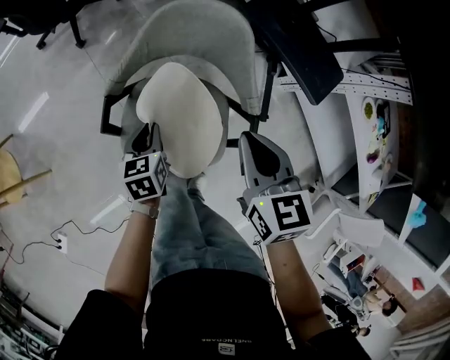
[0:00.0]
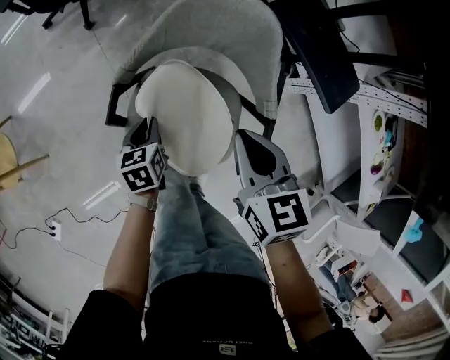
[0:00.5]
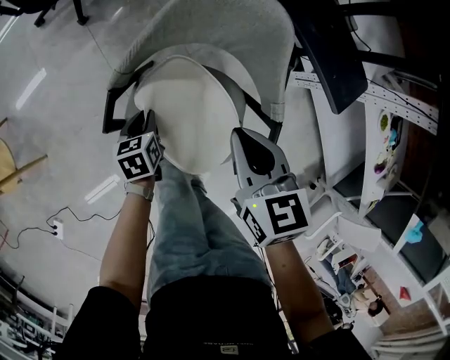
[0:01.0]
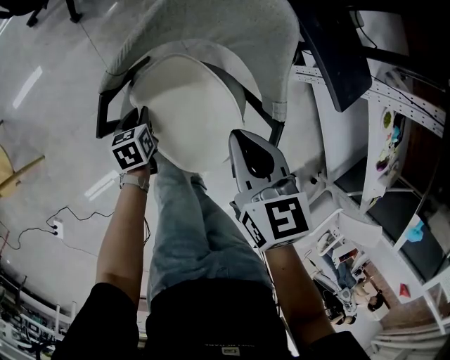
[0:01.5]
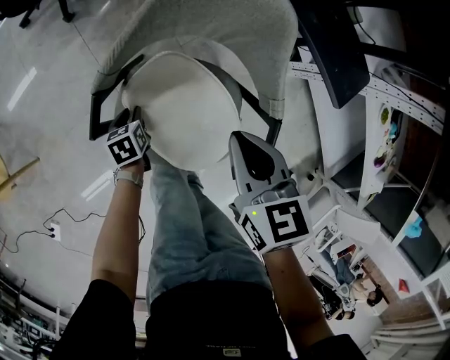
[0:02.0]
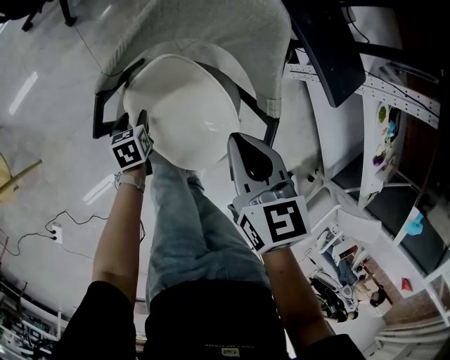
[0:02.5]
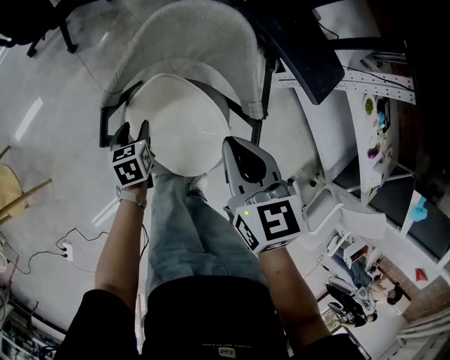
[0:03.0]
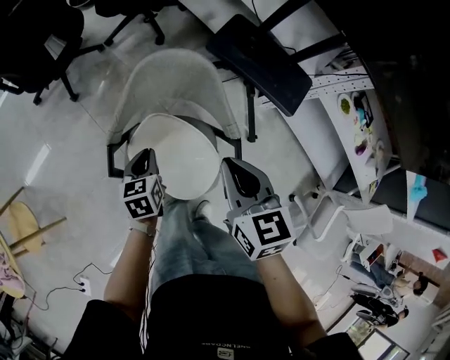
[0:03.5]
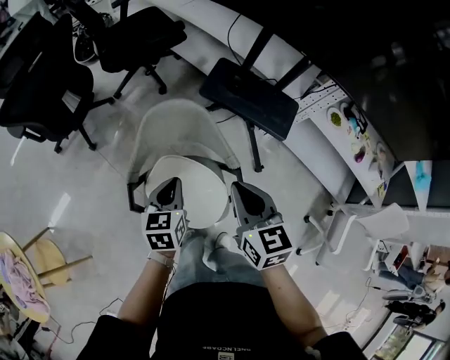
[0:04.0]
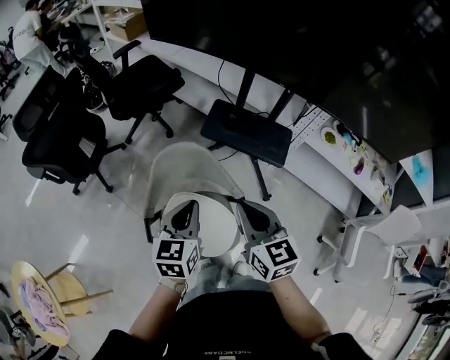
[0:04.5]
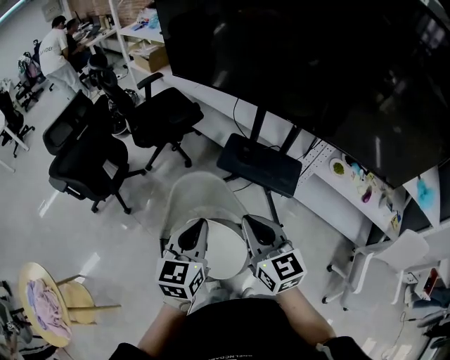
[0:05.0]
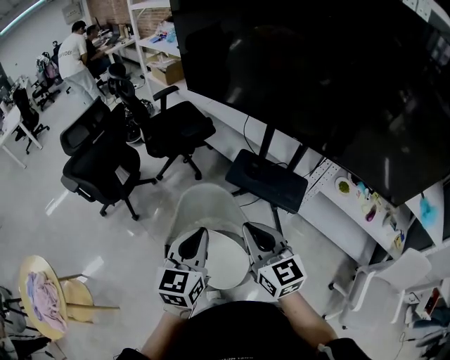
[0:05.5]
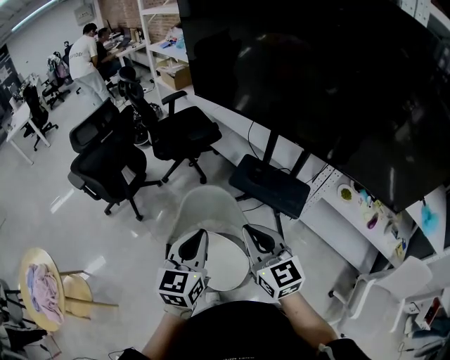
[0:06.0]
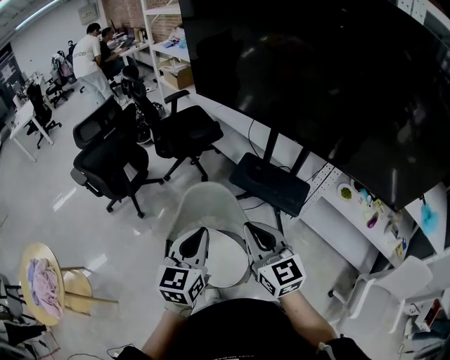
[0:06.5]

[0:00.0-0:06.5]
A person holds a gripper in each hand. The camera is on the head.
0:00.0 to 0:02.0: The right gripper travels downward by roughly 10 cm, while the left gripper shifts some 20 cm downward.
0:02.0 to 0:04.5: The right gripper moves upward, approximately 25 cm, and swivels some 30 degrees, while the left gripper shifts some 50 cm upward, tilts its fingers some 40 degrees upward, and closes.
0:04.5 to 0:06.5: The left gripper shifts some 15 cm upward and backward; the right gripper goes some 10 cm upward, and turns by roughly 20 degrees.

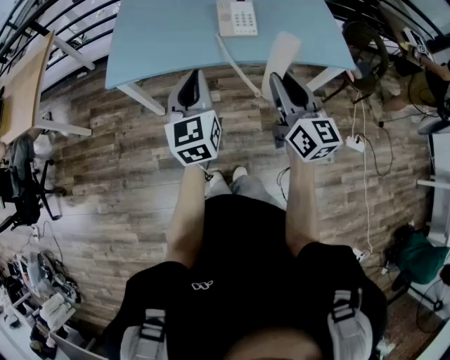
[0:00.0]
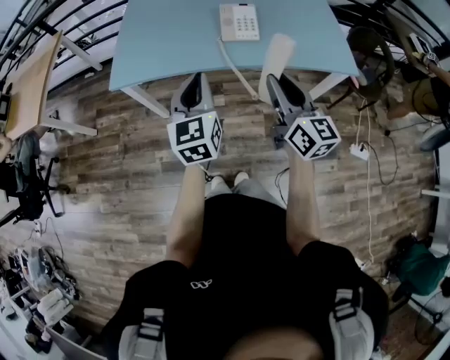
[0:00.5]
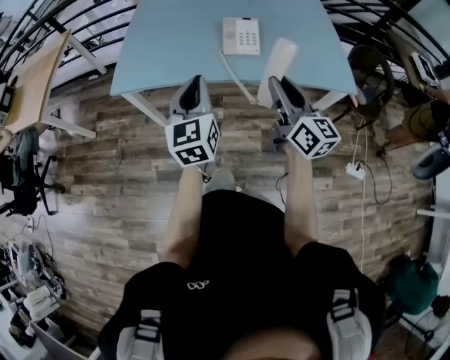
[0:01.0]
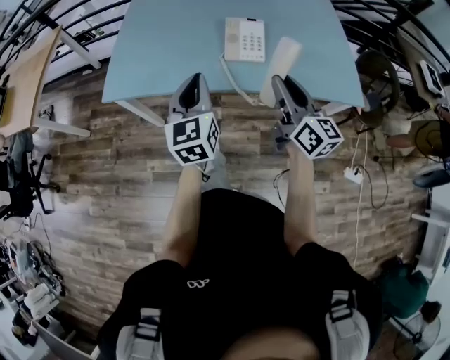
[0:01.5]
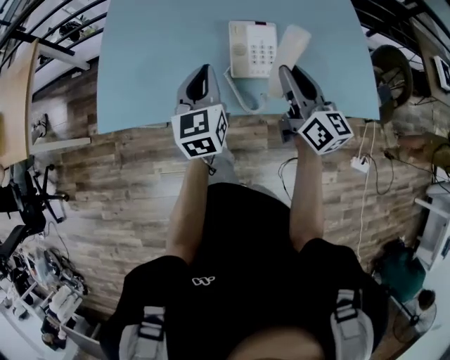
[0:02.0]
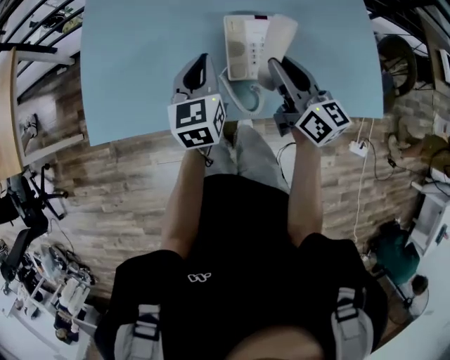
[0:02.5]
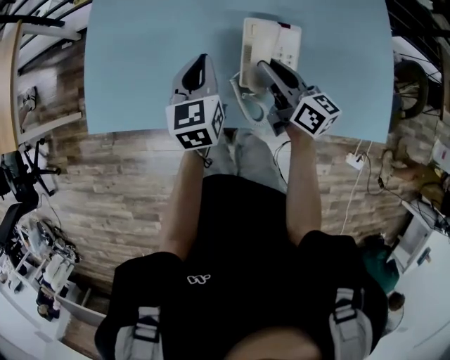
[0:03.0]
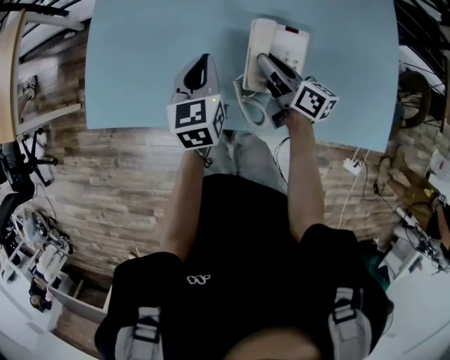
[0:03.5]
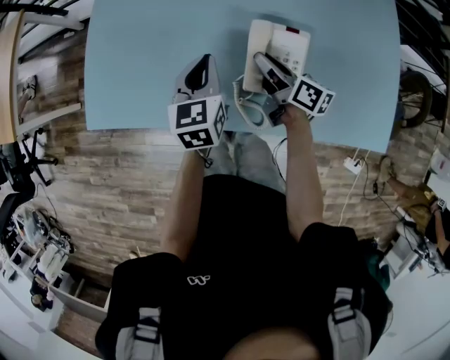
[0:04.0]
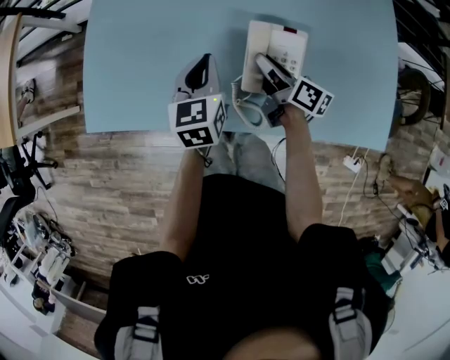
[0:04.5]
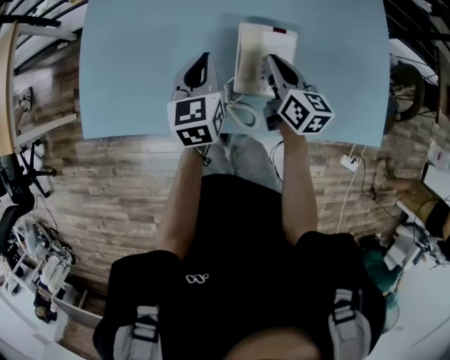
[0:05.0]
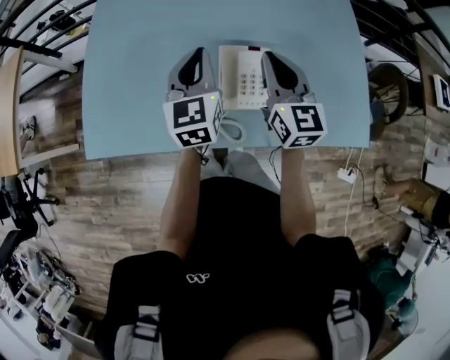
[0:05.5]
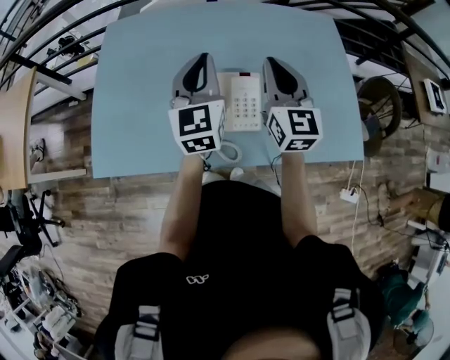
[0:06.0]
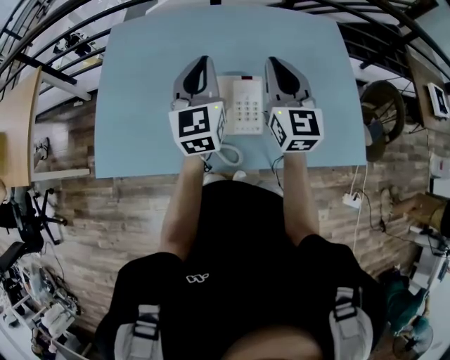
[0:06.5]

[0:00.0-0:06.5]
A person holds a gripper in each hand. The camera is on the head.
0:00.0 to 0:02.0: Both grippers move forward, roughly 30 cm.
0:02.0 to 0:04.5: The left gripper moves forward and downward, some 15 cm. Meanwhile the right gripper goes approximately 25 cm downward and forward, and changes its angle by about 40 degrees.
0:04.5 to 0:06.5: The left gripper heads upward and to the right, covering some 20 cm, and turns by some 30 degrees. The right gripper goes roughly 25 cm upward, twists approximately 60 degrees counterclockwise, seen from behind, and closes.

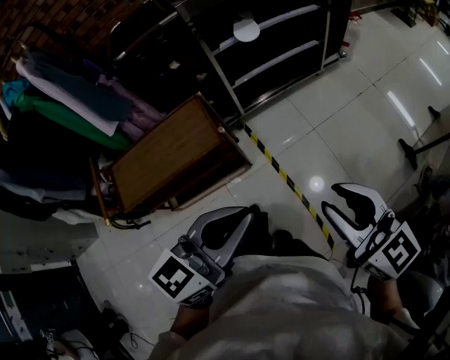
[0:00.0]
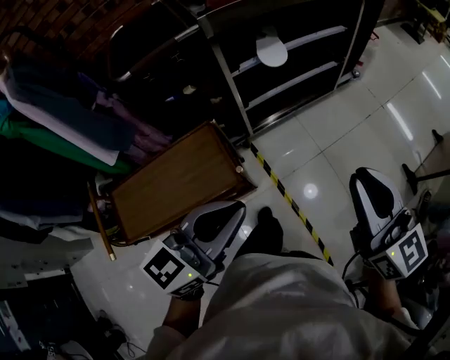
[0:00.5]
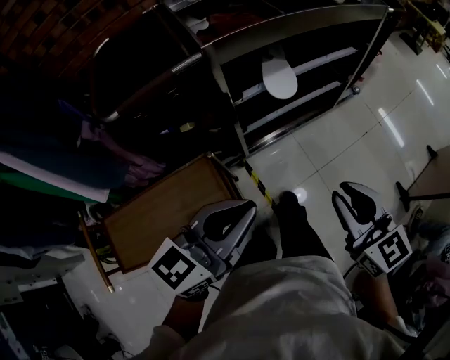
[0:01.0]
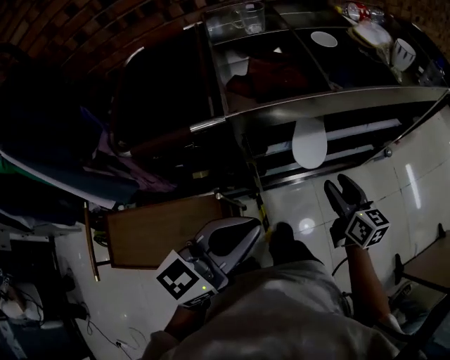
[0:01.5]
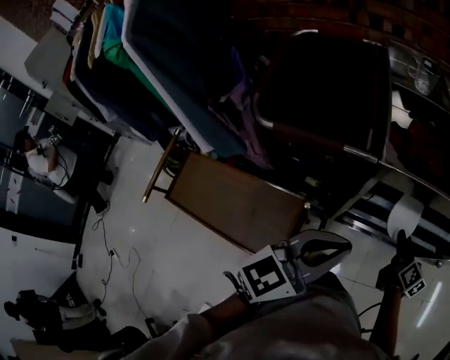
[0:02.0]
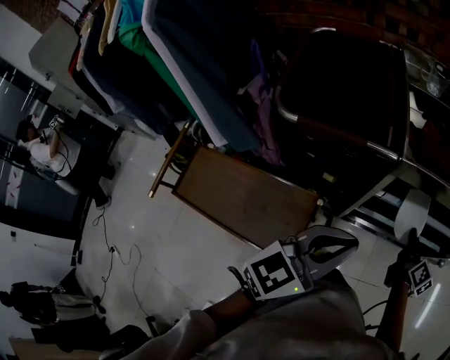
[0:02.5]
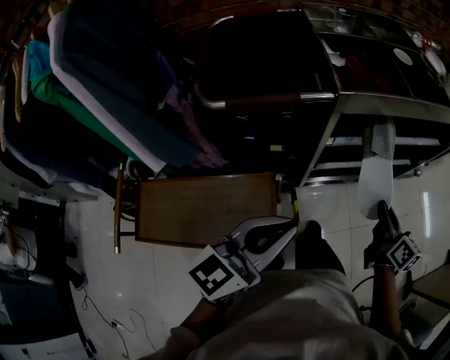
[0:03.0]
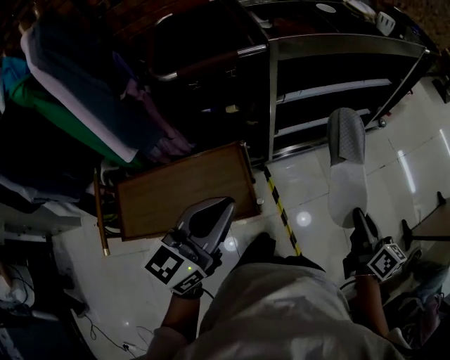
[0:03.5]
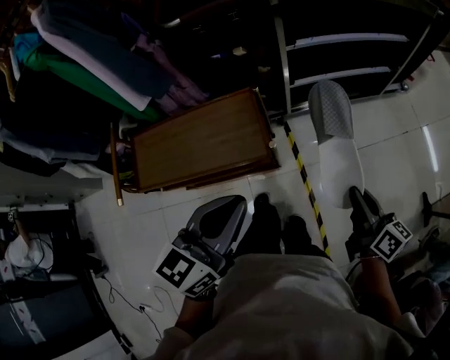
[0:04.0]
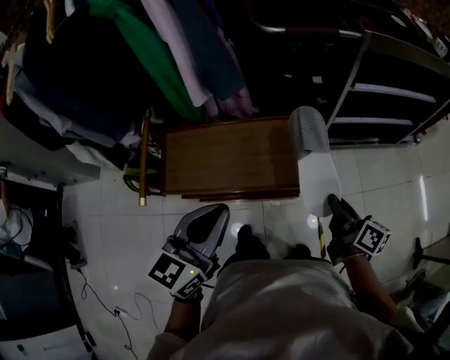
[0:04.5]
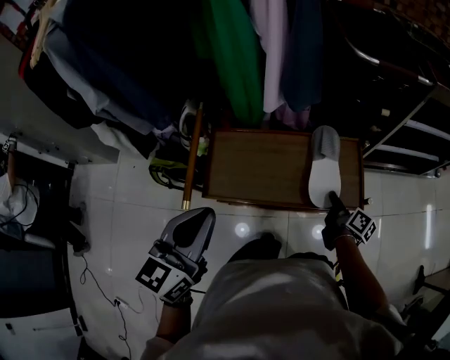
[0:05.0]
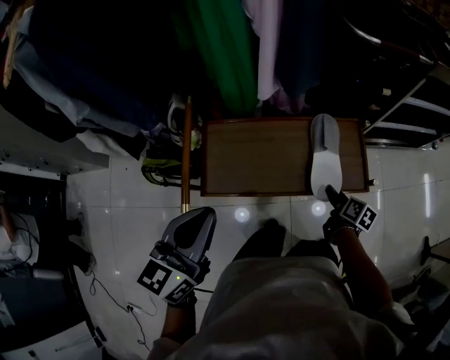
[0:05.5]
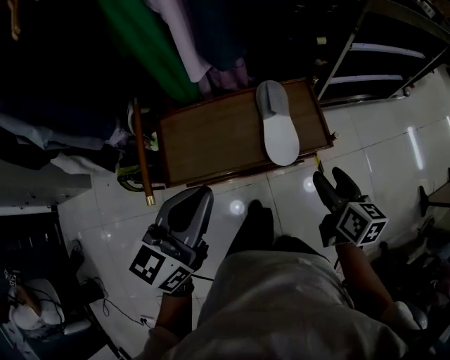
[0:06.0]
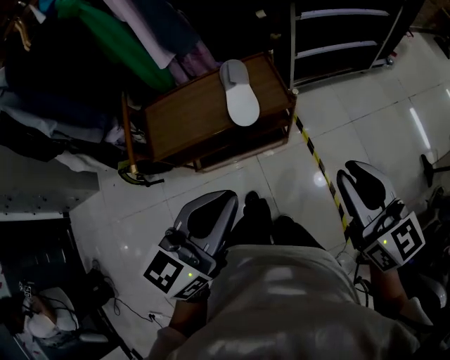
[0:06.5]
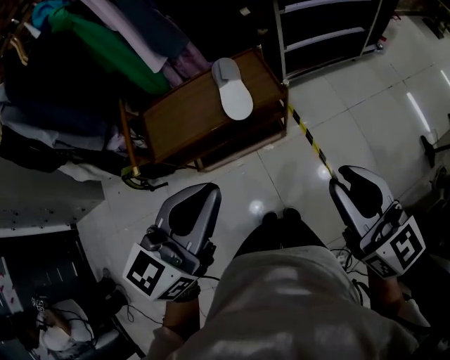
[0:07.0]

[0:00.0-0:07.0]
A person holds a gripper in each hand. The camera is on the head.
0:00.0 to 0:02.0: Both grippers are carried forward, some 60 cm. The left gripper swivels some 30 degrees; the right gripper changes its angle by about 40 degrees, and opens its fingers.
0:02.0 to 0:03.5: The right gripper is displaced backward by approximately 40 cm, and closes. The left gripper travels backward and to the left by about 25 cm.
0:03.5 to 0:05.0: The two grippers travel together, to the left, some 40 cm. The right gripper heads downward, covering some 20 cm, and changes its angle by roughly 30 degrees; the left gripper changes its angle by roughly 30 degrees.
0:05.0 to 0:07.0: The right gripper is displaced backward, upward and to the right by about 50 cm, twists some 50 degrees counterclockwise, seen from behind, and opens, then closes again. The left gripper moves to the right and backward, roughly 30 cm, and rotates some 30 degrees.

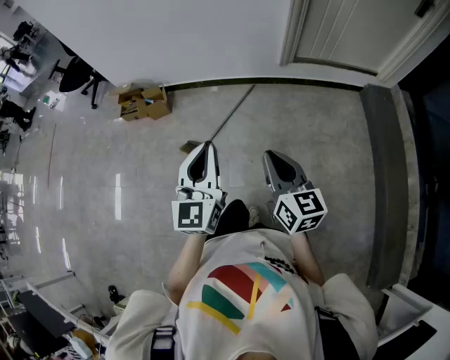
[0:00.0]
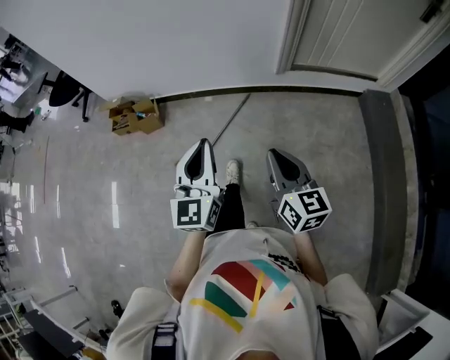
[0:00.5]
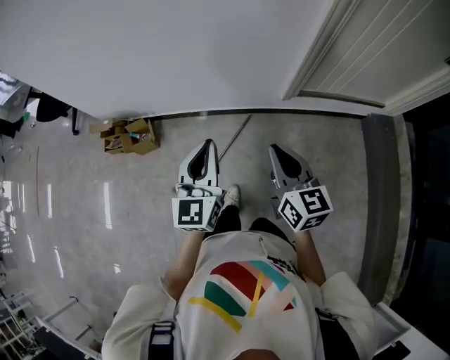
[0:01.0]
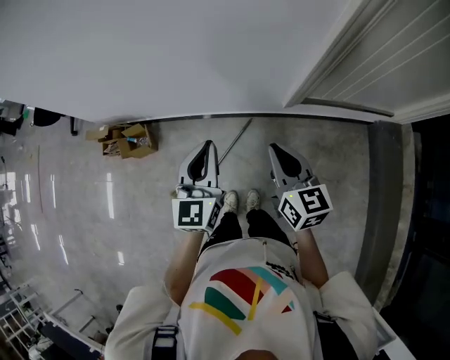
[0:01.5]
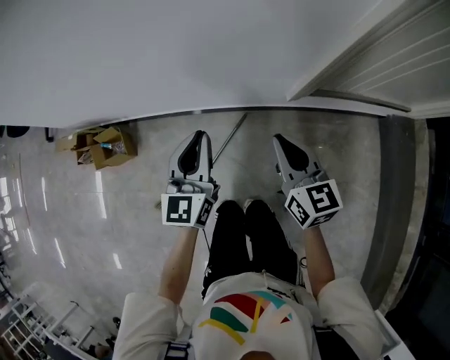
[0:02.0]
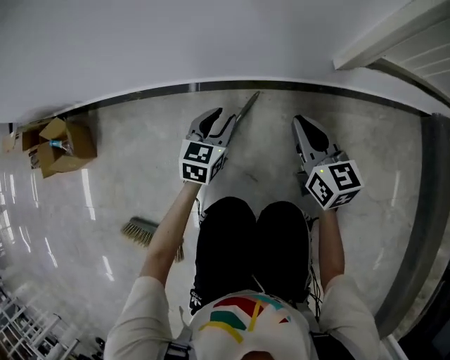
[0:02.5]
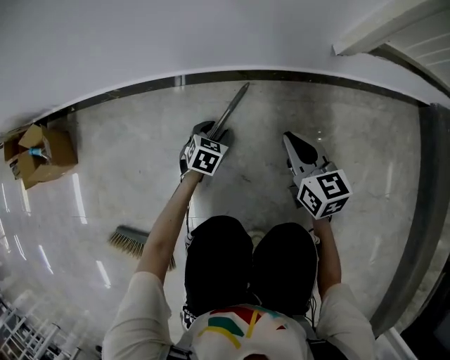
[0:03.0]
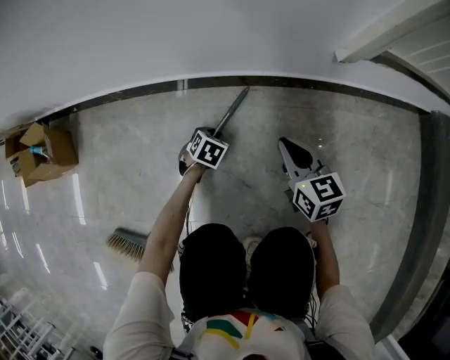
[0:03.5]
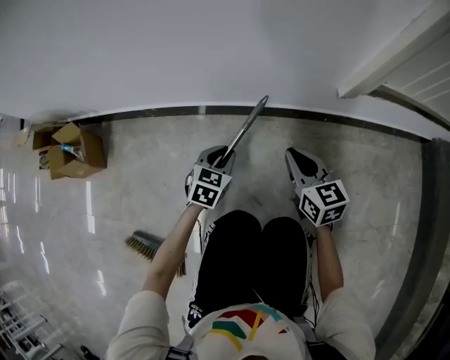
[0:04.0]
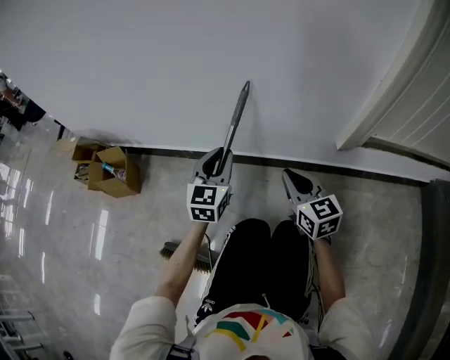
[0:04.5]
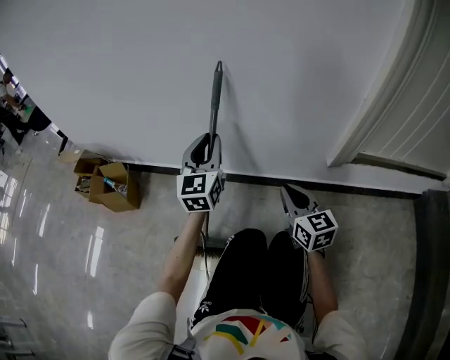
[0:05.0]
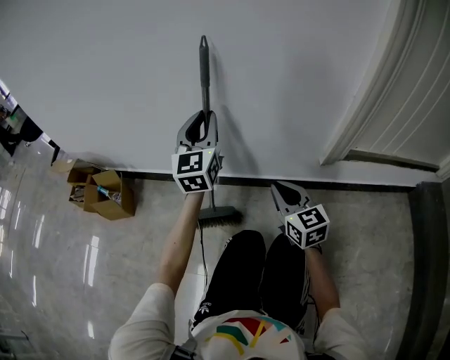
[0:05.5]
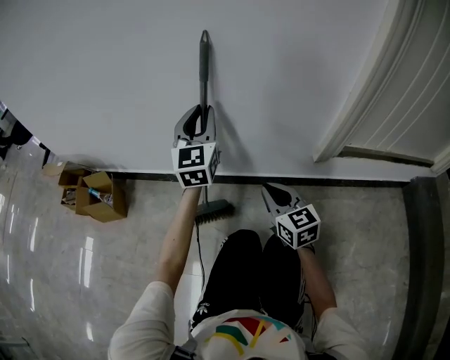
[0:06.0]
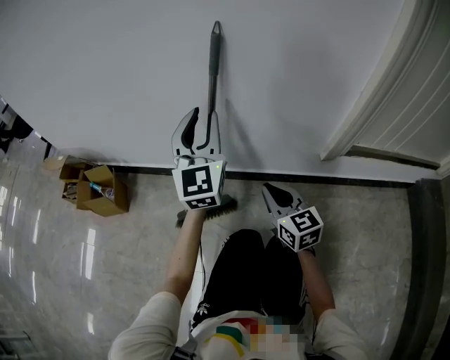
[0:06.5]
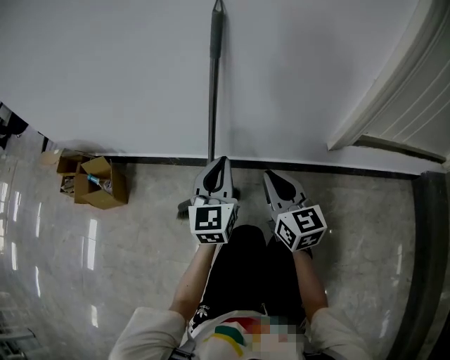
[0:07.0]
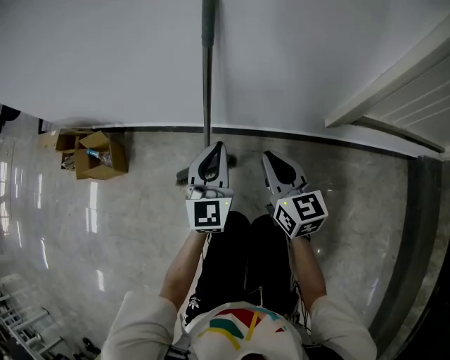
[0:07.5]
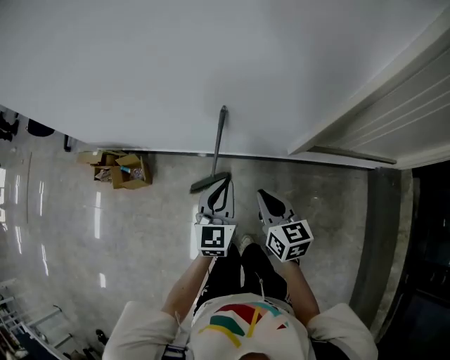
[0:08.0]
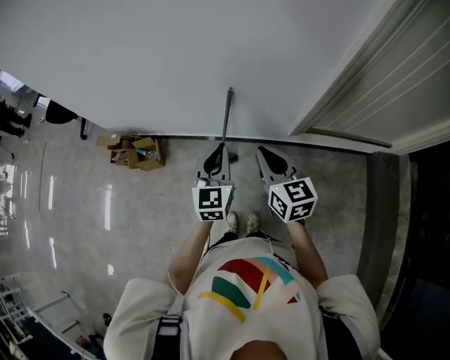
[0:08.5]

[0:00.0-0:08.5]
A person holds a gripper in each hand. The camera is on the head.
0:00.0 to 0:02.0: The pair of grippers is taken forward, some 70 cm. The left gripper moves downward, roughly 30 cm.
0:02.0 to 0:04.0: Both grippers move downward, approximately 60 cm. The left gripper tips its fingers downward by roughly 40 degrees, and opens and closes again.
0:04.0 to 0:06.5: The left gripper heads upward, covering roughly 40 cm, and tips its fingers upward by some 50 degrees. The right gripper shifts roughly 15 cm upward and to the left.
0:06.5 to 0:08.5: The right gripper goes approximately 60 cm upward; the left gripper heads upward and backward, covering roughly 40 cm, changes its angle by roughly 30 degrees, and closes its fingers.
